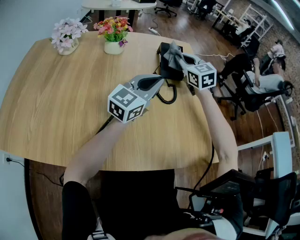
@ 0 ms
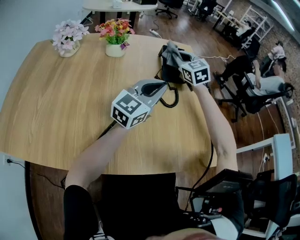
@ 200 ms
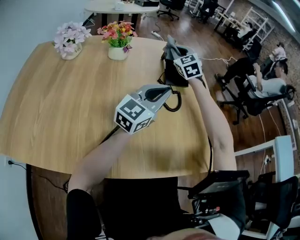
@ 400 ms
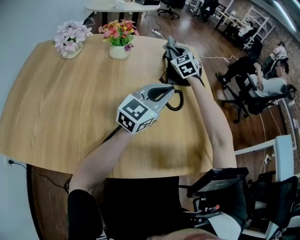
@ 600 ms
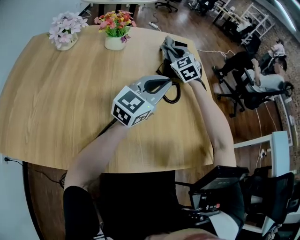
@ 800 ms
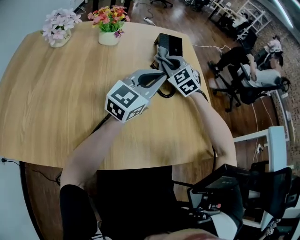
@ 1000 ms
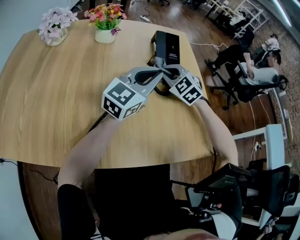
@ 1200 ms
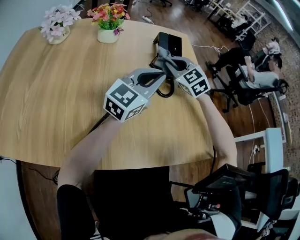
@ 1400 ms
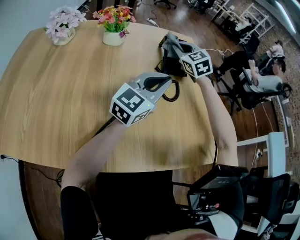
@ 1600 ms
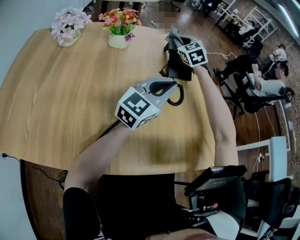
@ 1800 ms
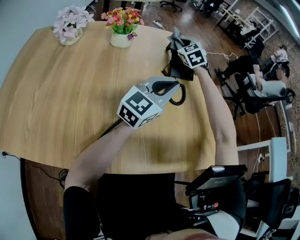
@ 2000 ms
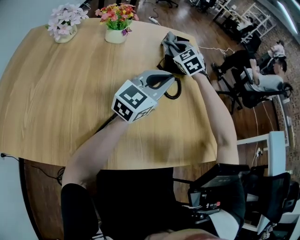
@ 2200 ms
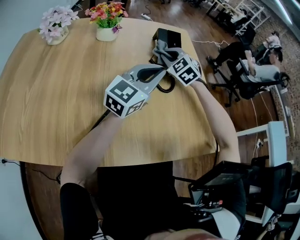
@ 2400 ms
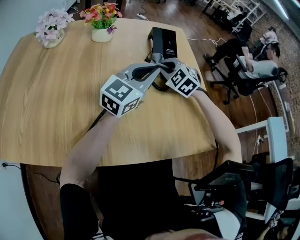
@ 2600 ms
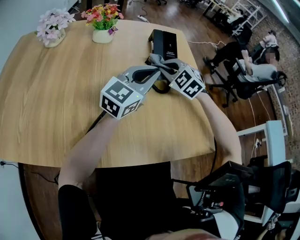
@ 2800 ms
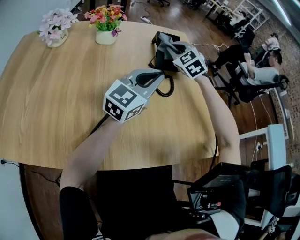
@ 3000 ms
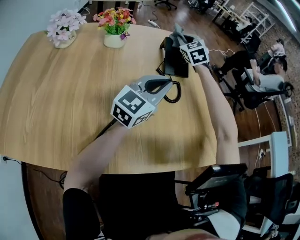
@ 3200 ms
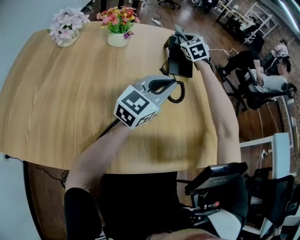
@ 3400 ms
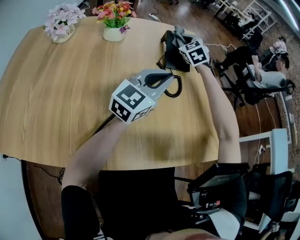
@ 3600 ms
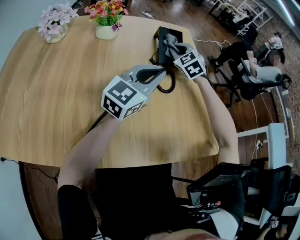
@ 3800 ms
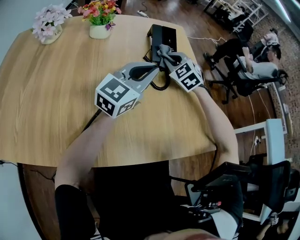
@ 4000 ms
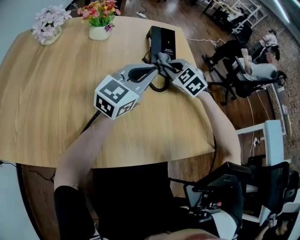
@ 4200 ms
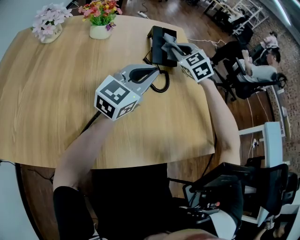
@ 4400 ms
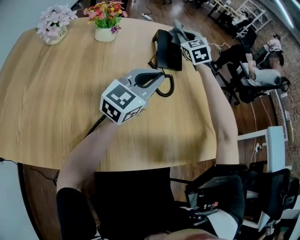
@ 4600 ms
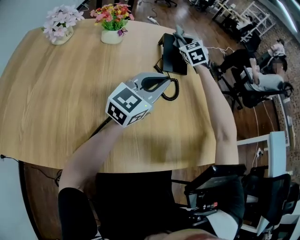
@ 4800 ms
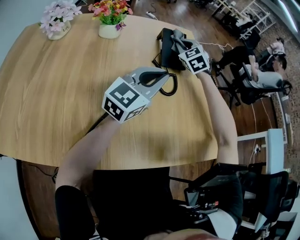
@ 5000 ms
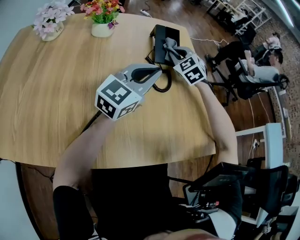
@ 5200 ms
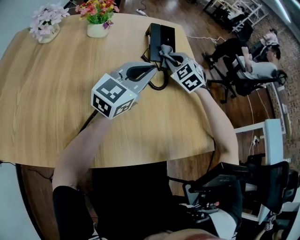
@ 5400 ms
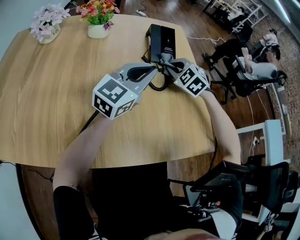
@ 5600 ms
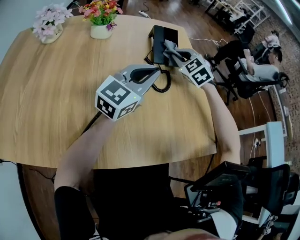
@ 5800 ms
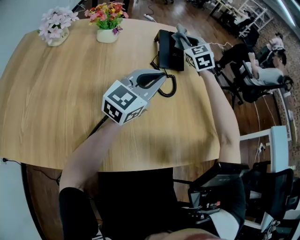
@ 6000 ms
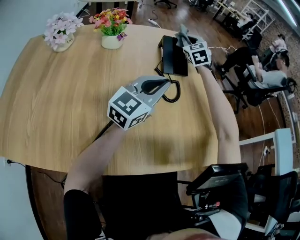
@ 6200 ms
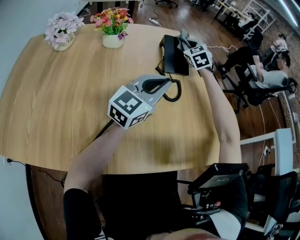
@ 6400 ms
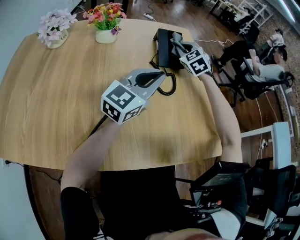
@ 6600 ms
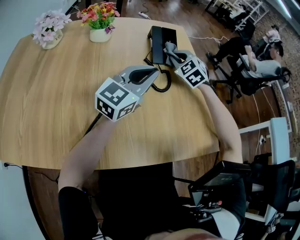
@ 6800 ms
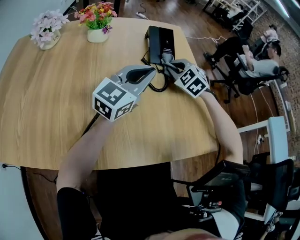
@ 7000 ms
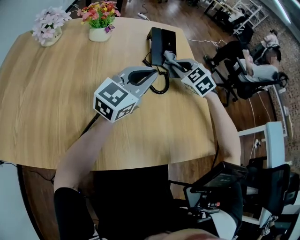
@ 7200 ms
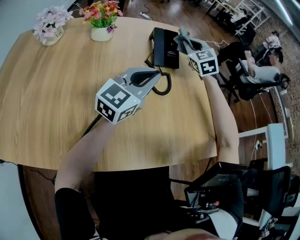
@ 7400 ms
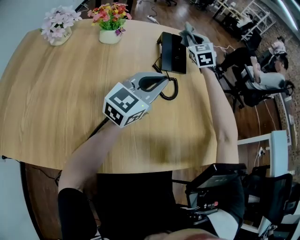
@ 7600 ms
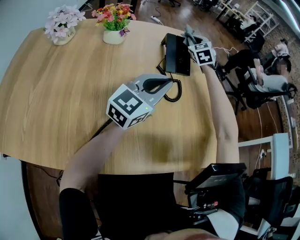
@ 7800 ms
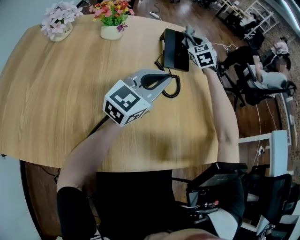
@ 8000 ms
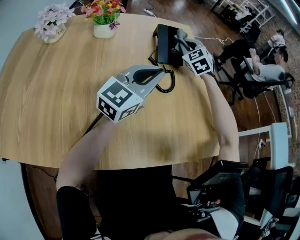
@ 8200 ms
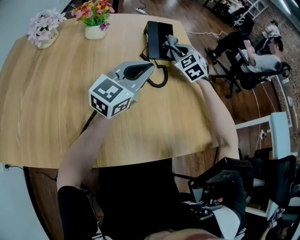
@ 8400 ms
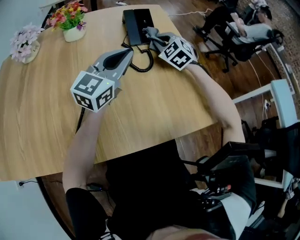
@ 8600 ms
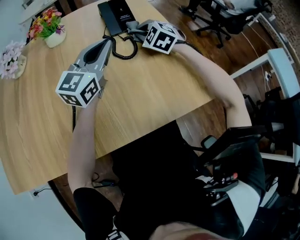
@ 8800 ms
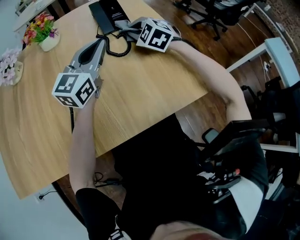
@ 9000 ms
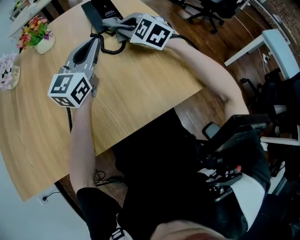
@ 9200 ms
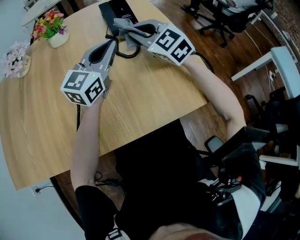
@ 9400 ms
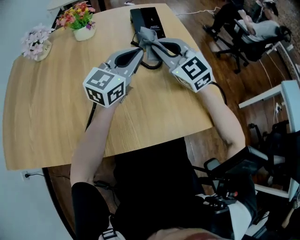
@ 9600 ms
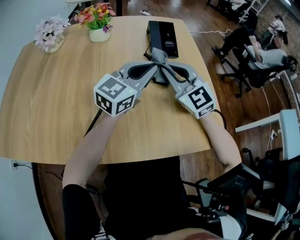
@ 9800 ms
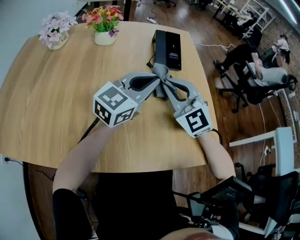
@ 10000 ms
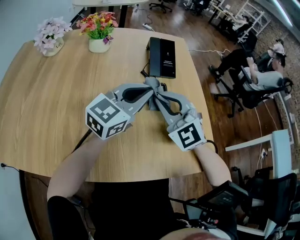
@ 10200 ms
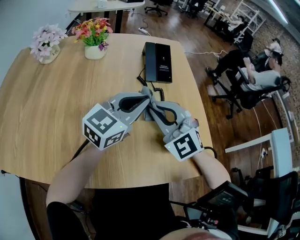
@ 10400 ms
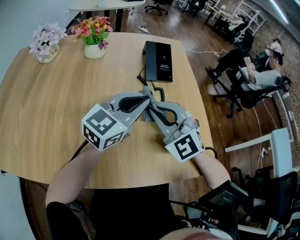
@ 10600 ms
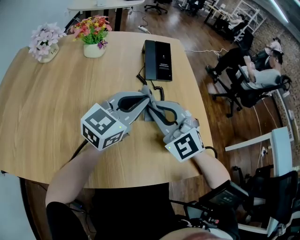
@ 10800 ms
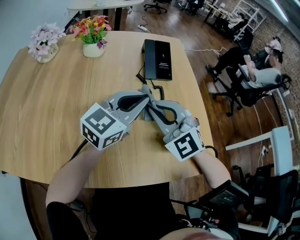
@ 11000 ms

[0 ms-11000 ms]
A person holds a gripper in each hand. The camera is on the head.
0 ms to 1600 ms: The right gripper moves forward and backward over about 15 cm, changing direction 2 times.
1600 ms to 3200 ms: The right gripper goes forward and backward, approximately 20 cm each way, reversing 2 times.
3200 ms to 4800 ms: The right gripper travels backward and back again, some 15 cm each way.
4800 ms to 6200 ms: The right gripper goes backward and returns, roughly 15 cm each way.
6200 ms to 7800 ms: The right gripper goes backward and returns, some 15 cm each way.
7800 ms to 9400 ms: The right gripper travels backward by some 30 cm, and swivels roughly 20 degrees.
9400 ms to 11000 ms: The right gripper travels backward and to the left by about 10 cm.

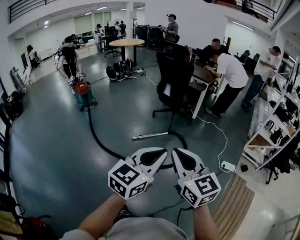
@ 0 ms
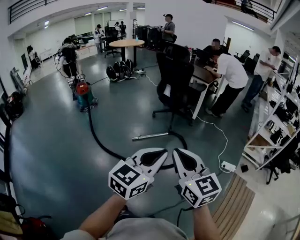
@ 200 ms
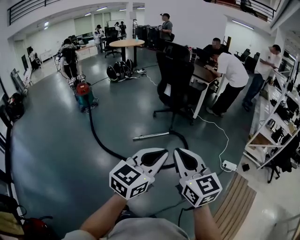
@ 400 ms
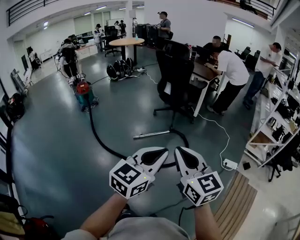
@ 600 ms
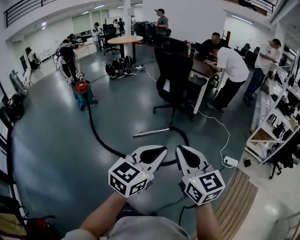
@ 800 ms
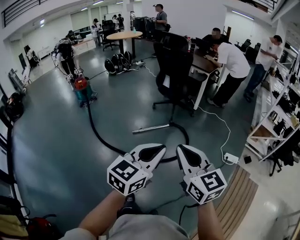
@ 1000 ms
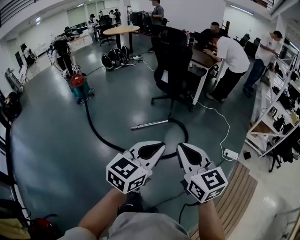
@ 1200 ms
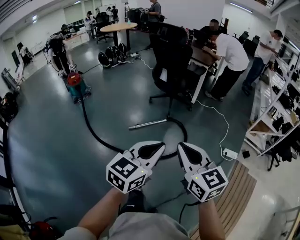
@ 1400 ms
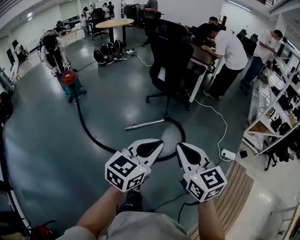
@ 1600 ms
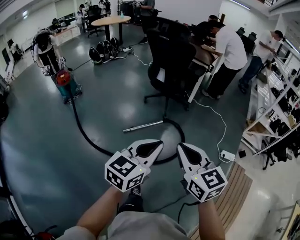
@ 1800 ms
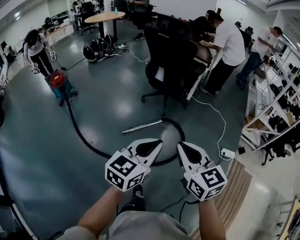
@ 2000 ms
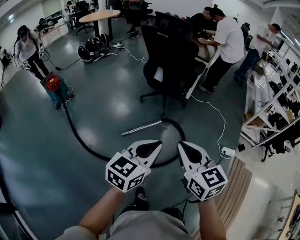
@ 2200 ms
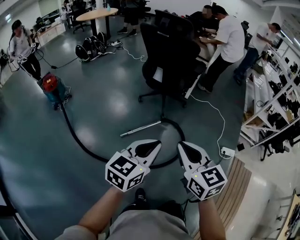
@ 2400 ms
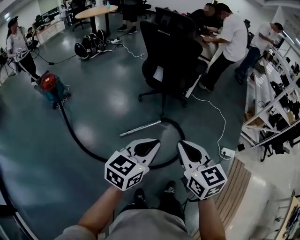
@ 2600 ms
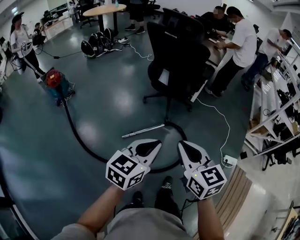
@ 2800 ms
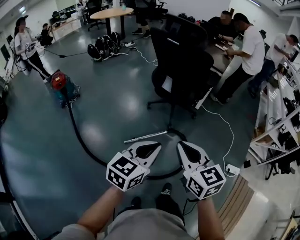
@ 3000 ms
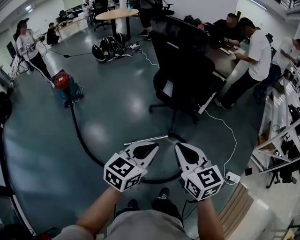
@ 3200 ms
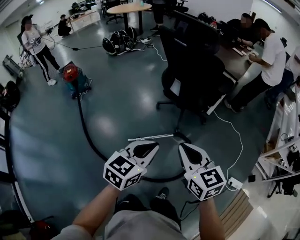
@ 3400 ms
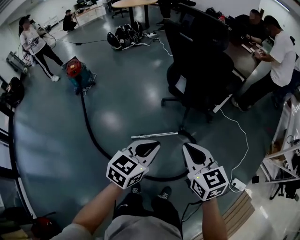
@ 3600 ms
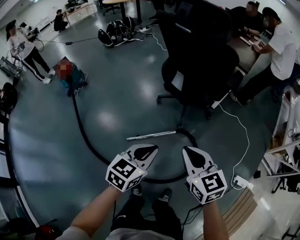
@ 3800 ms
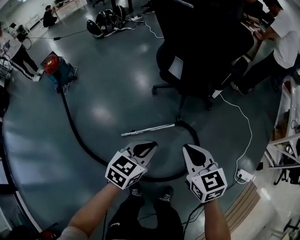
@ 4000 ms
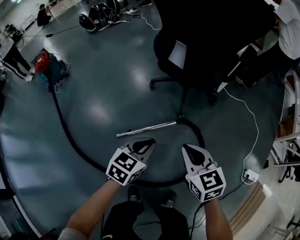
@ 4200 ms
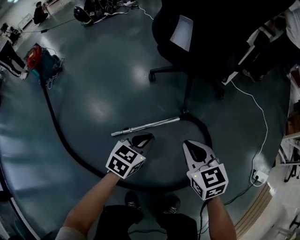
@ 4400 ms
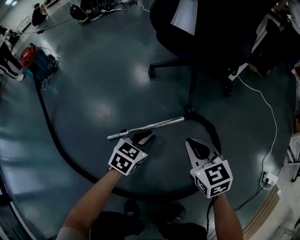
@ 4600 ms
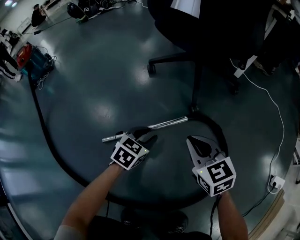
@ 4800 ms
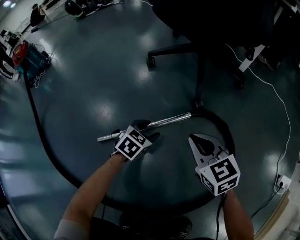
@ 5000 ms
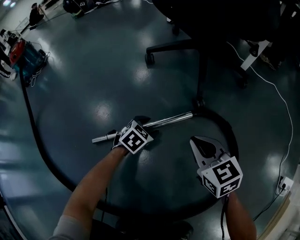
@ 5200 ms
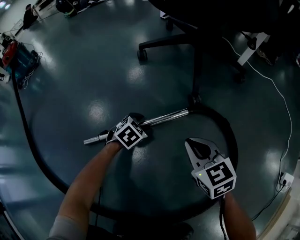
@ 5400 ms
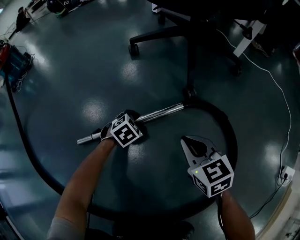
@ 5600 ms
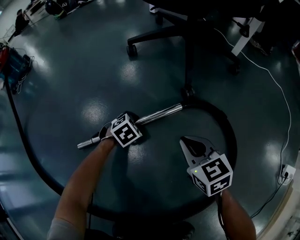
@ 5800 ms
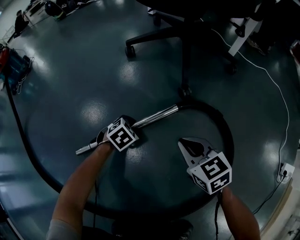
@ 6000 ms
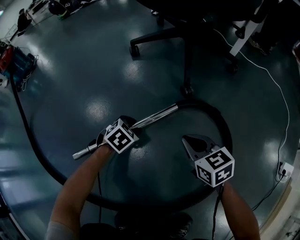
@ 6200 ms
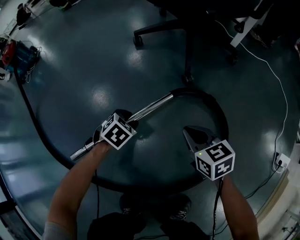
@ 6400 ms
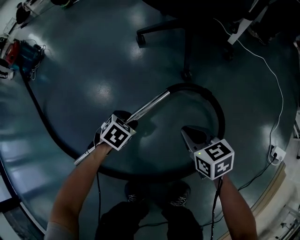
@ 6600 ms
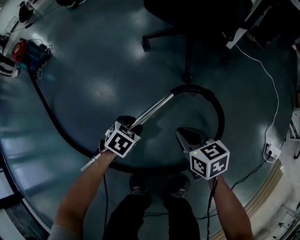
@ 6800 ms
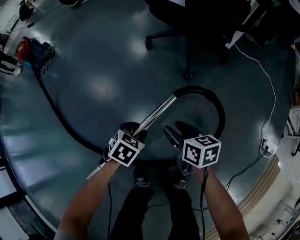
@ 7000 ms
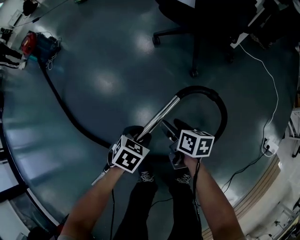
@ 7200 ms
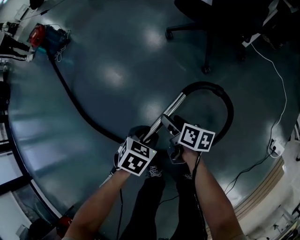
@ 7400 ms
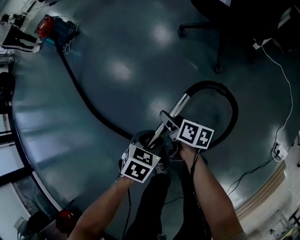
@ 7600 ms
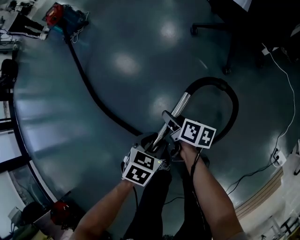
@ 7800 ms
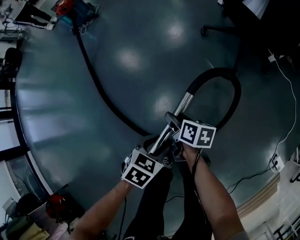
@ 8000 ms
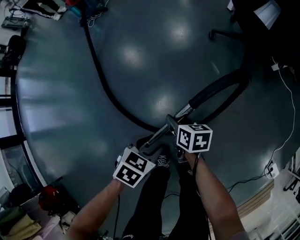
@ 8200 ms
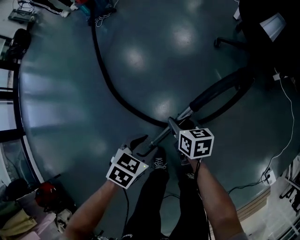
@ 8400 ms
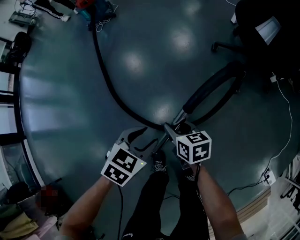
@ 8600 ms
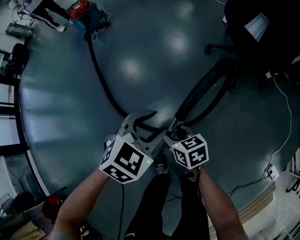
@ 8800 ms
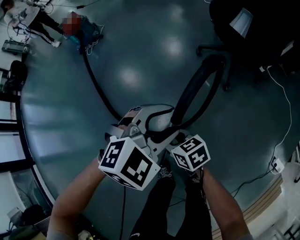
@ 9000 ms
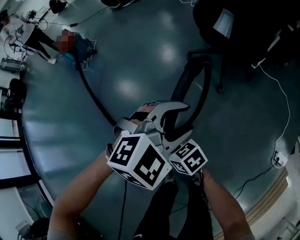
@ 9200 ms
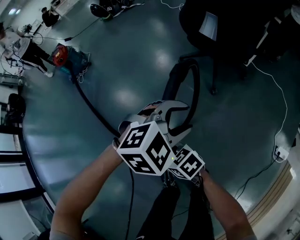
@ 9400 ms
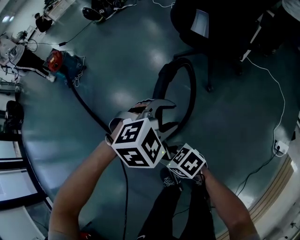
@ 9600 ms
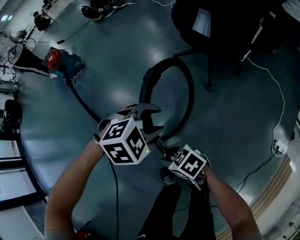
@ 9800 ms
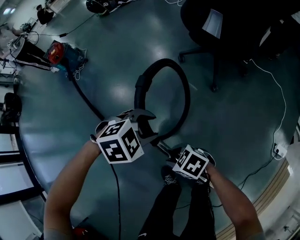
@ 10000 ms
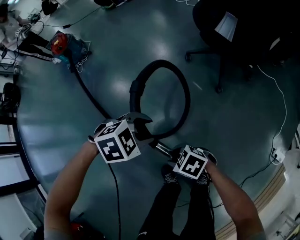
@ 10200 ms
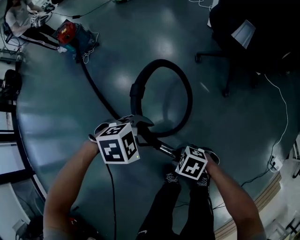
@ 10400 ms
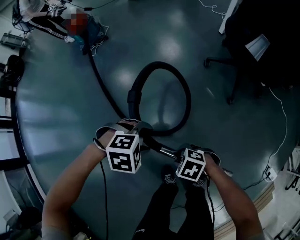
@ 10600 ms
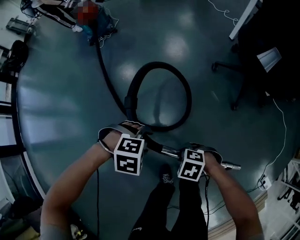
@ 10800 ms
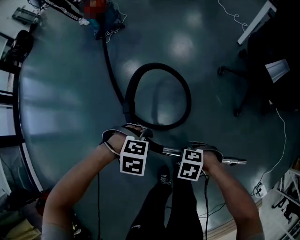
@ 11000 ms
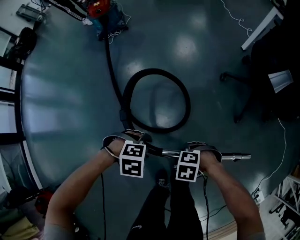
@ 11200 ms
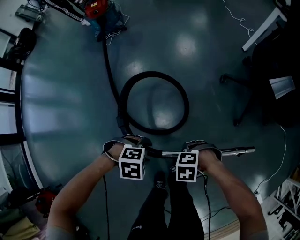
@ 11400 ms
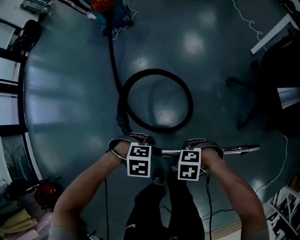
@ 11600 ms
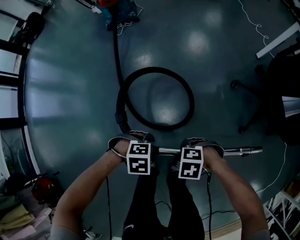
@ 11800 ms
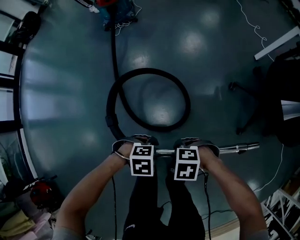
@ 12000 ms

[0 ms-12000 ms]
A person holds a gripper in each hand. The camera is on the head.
0 ms to 1600 ms: Both grippers travel together forward, roughly 15 cm.
1600 ms to 3000 ms: Both grippers travel together forward, approximately 30 cm.
3000 ms to 4400 ms: The grippers both shift downward and forward by about 60 cm. The left gripper changes its angle by roughly 20 degrees.
4400 ms to 6000 ms: The grippers both shift downward by about 40 cm. The left gripper changes its angle by about 40 degrees, and opens its fingers.
6000 ms to 7600 ms: The left gripper heads upward and backward, covering about 50 cm, and rotates some 30 degrees; the right gripper travels upward, to the left and backward by about 35 cm, twists roughly 60 degrees clockwise, seen from behind, and opens its fingers.
7600 ms to 9000 ms: The right gripper goes roughly 20 cm upward, to the left and backward, rotates around the line of its fingers by some 50 degrees, counterclockwise from behind, and closes its fingers. Meanwhile the left gripper travels upward by approximately 25 cm, and rolls clockwise, seen from behind, by approximately 40 degrees.
9000 ms to 10400 ms: The right gripper swivels roughly 40 degrees; the left gripper ends up about 15 cm from where it was, and swivels roughly 40 degrees.
10400 ms to 12000 ms: The right gripper moves about 20 cm, and turns by approximately 40 degrees. The left gripper is displaced downward by some 15 cm.
